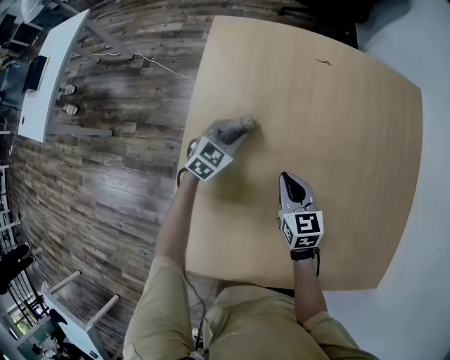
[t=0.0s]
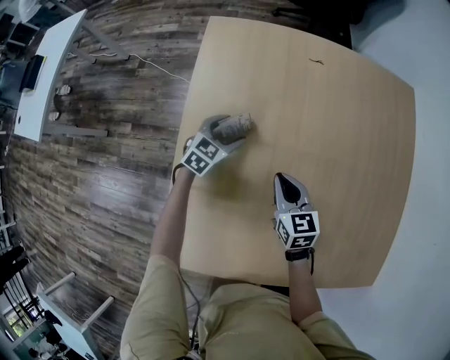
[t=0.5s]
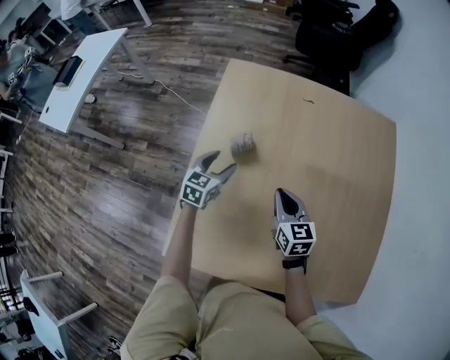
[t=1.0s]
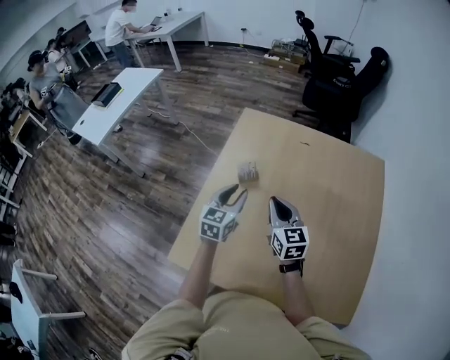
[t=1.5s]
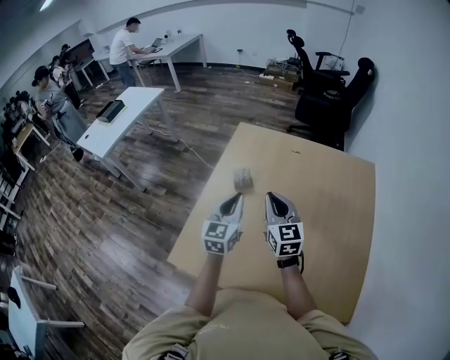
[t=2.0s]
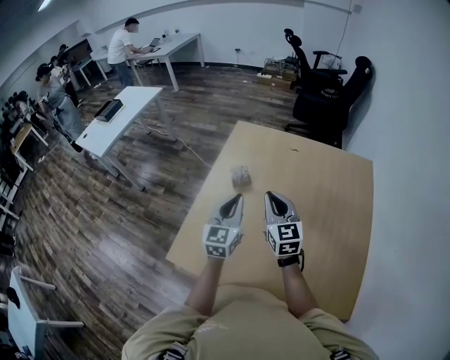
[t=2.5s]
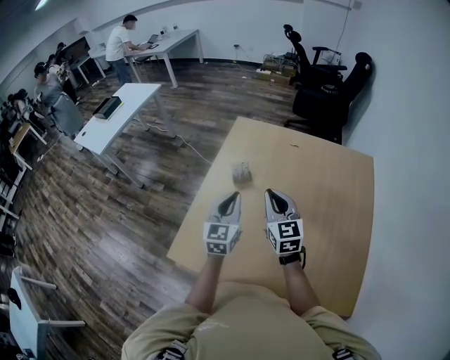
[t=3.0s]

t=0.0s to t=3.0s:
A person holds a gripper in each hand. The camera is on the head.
t=0.0s to t=1.5s: The right gripper travels upward by some 25 cm, and turns by approximately 20 degrees, while the left gripper is displaced upward and backward by roughly 35 cm, changes its angle by about 40 degrees, and opens, then closes once more.
t=1.5s to t=3.0s: The right gripper goes approximately 5 cm upward; the left gripper shifts some 10 cm backward and upward, and closes up.

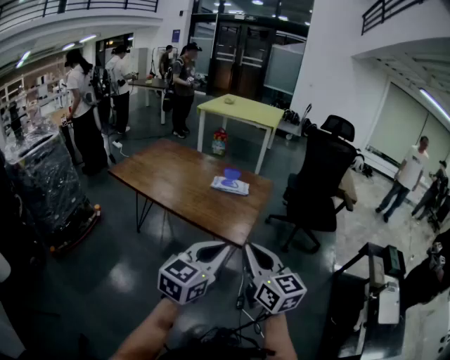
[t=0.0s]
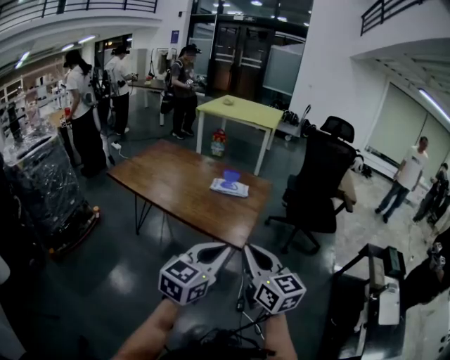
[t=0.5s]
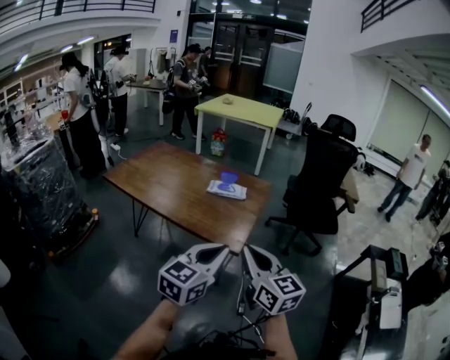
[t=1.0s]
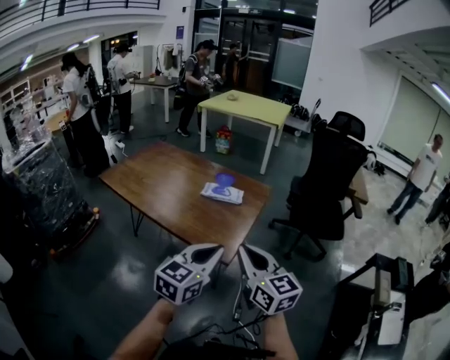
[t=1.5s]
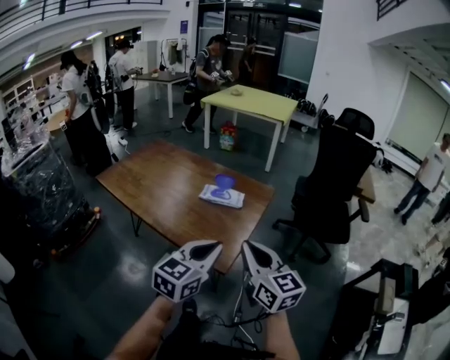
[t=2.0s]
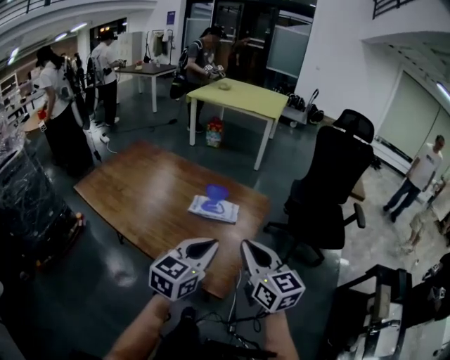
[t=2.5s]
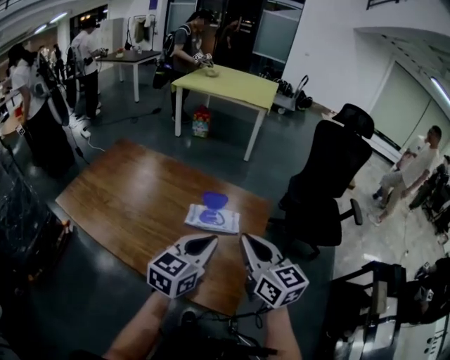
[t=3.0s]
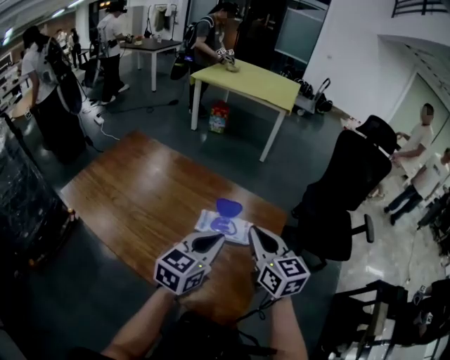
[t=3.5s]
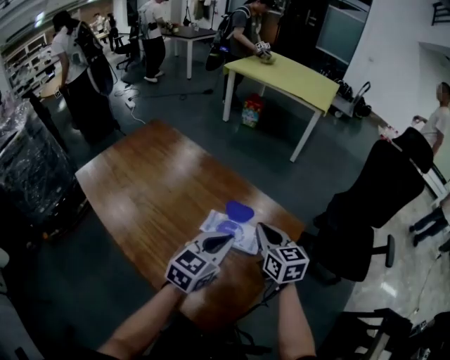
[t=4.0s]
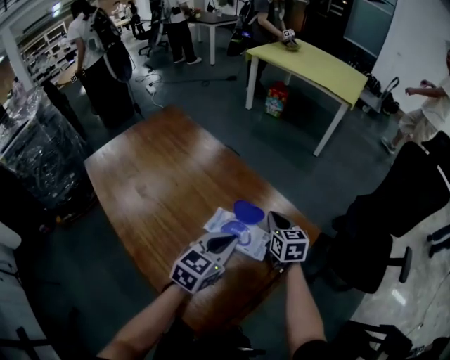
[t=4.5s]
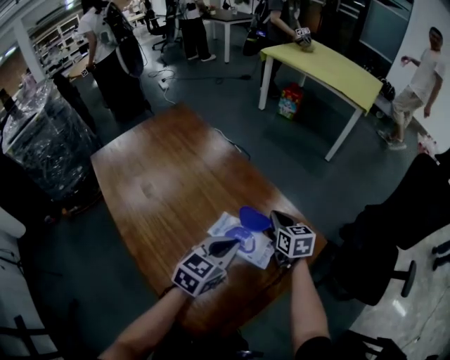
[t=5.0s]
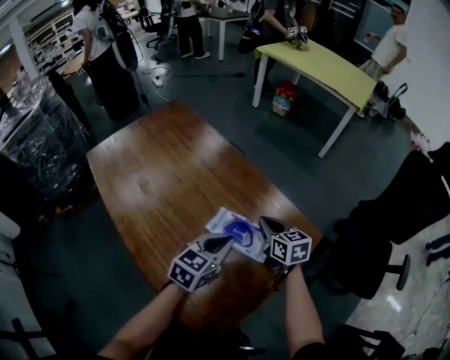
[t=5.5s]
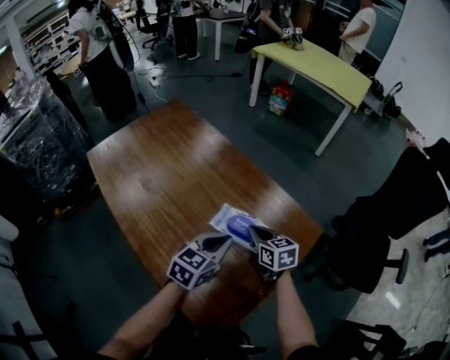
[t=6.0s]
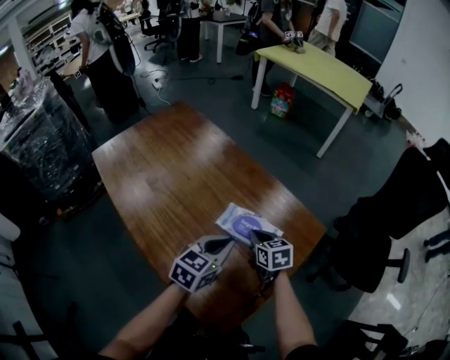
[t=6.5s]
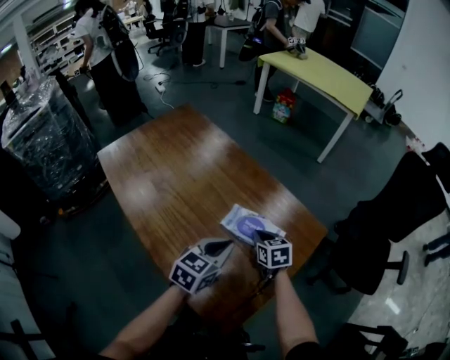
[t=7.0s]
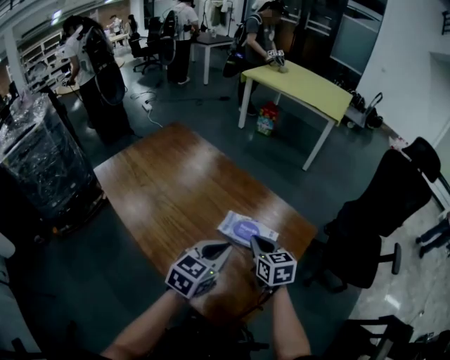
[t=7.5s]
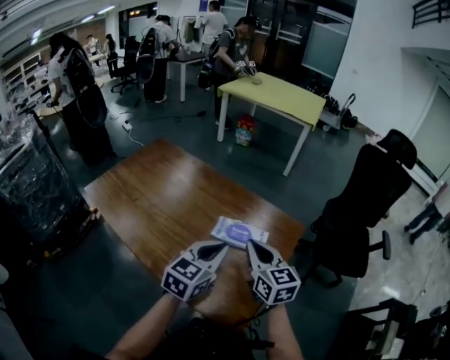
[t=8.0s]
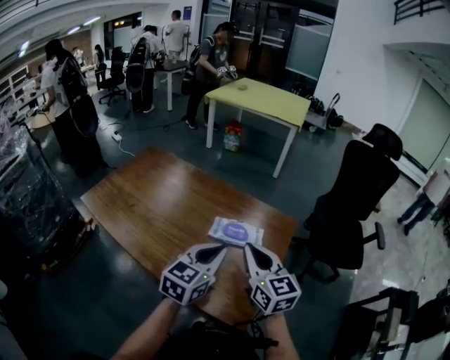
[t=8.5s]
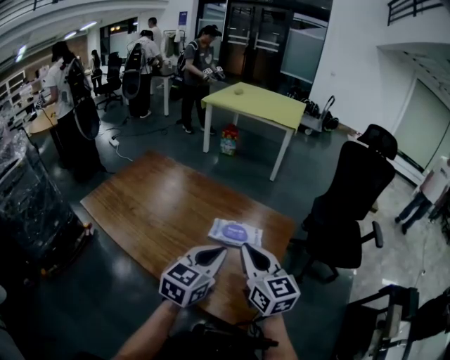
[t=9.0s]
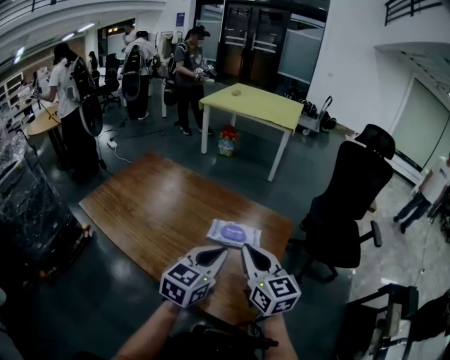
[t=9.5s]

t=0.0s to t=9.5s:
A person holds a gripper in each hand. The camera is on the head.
t=0.0s to t=2.0s: Both grippers move forward, some 15 cm.
t=2.0s to t=4.0s: The grippers both shift forward by approximately 35 cm.
t=4.0s to t=5.5s: The left gripper heads downward, covering some 5 cm; the right gripper travels downward and forward by roughly 15 cm.
t=5.5s to t=7.5s: The left gripper moves upward and backward, approximately 10 cm, while the right gripper heads backward and to the left, covering roughly 10 cm.
t=7.5s to t=9.5s: The right gripper travels upward and backward by approximately 20 cm, and swivels approximately 30 degrees, while the left gripper shifts about 10 cm upward and backward.

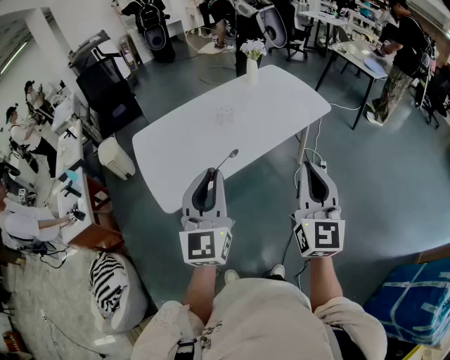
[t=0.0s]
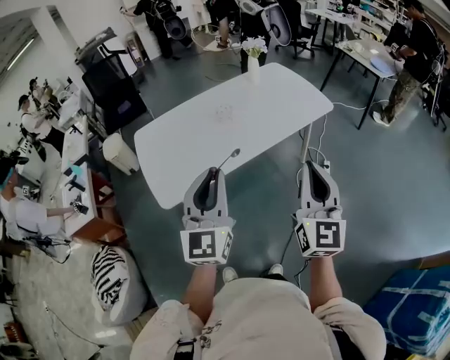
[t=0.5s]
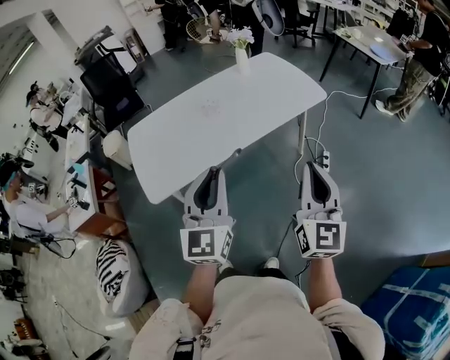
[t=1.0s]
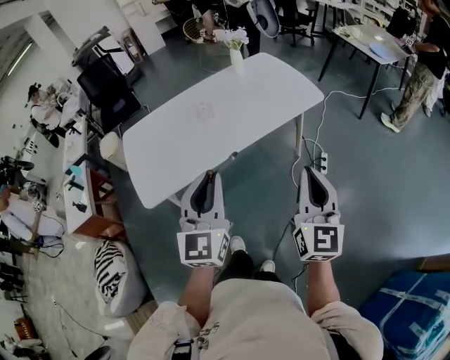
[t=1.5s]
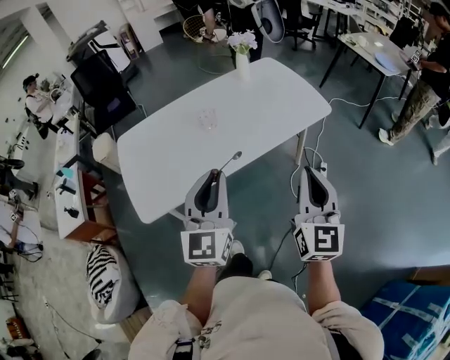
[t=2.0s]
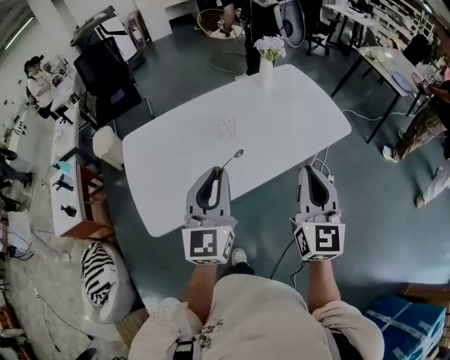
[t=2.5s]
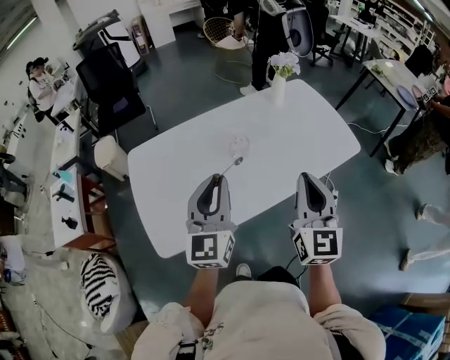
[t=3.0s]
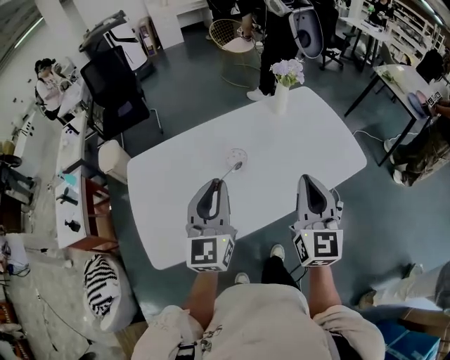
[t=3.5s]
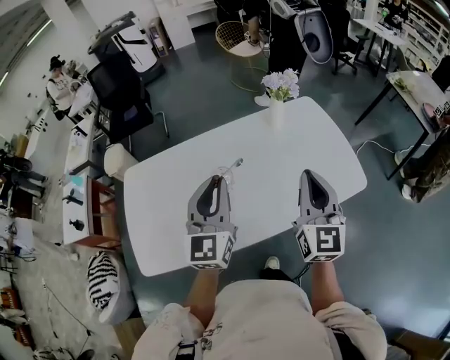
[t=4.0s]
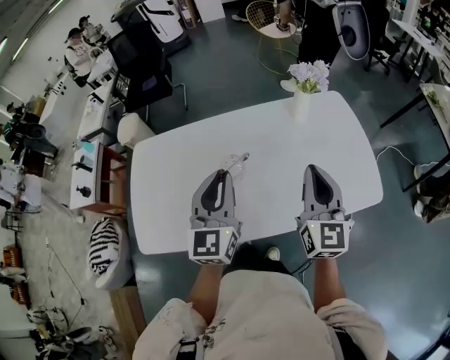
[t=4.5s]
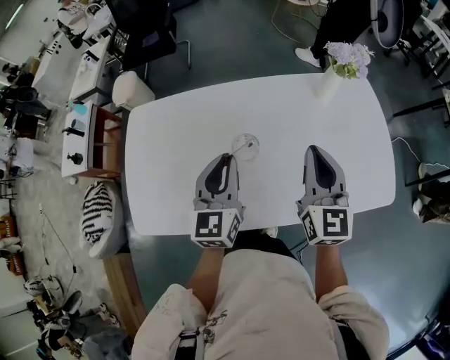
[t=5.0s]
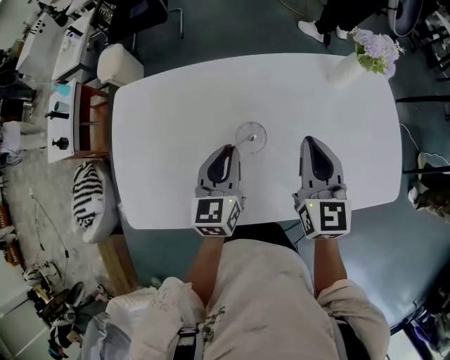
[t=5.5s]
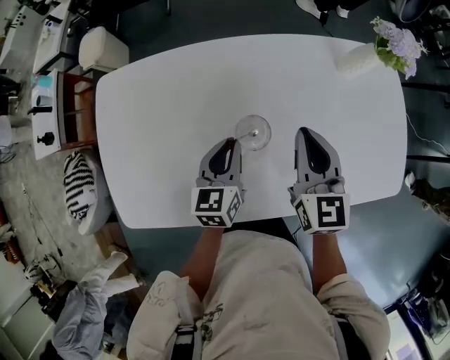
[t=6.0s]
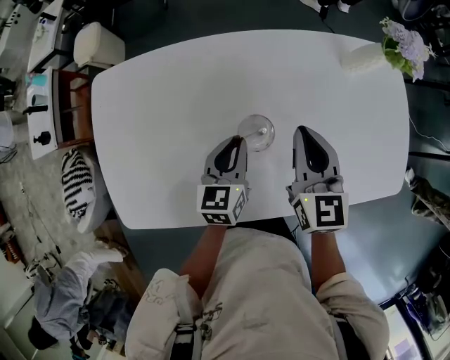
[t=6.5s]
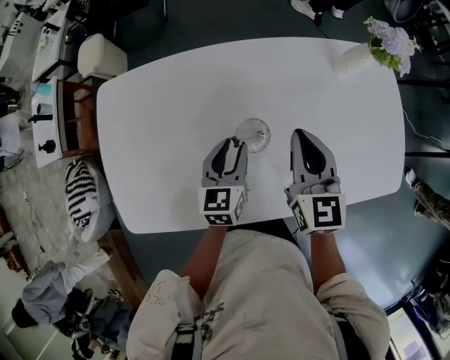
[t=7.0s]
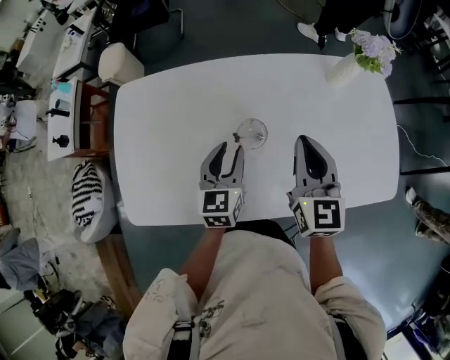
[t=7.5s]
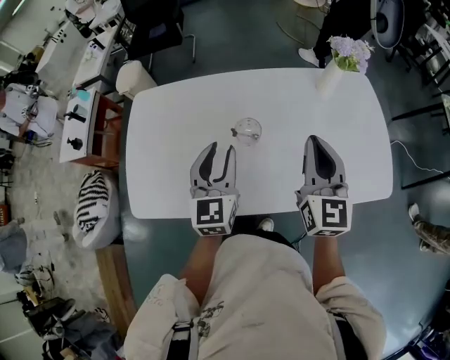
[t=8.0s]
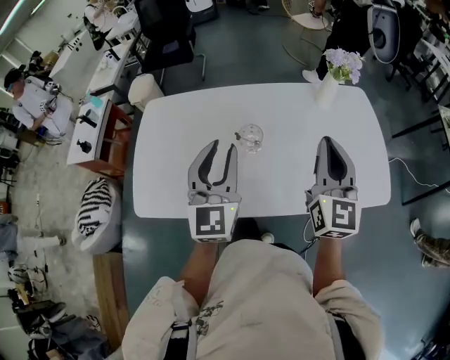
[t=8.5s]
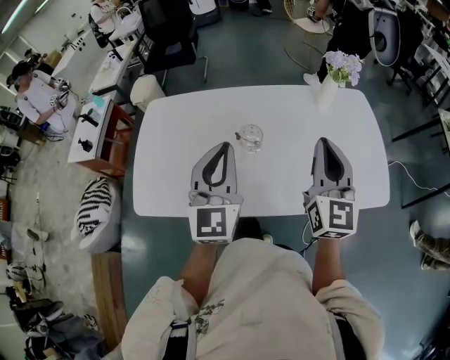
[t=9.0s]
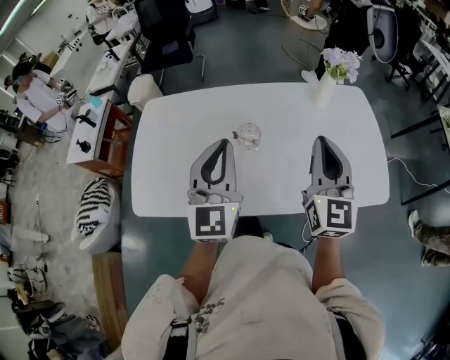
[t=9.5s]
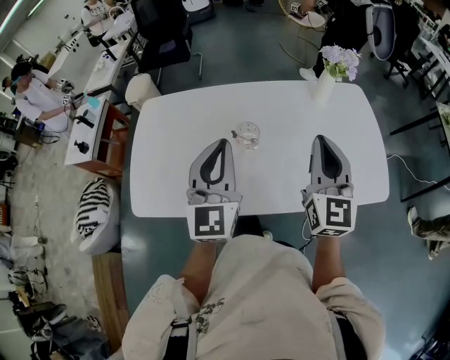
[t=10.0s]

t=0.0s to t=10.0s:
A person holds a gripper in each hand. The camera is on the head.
t=0.0s to t=2.0s: The left gripper moves to the right and forward, roughly 20 cm. Meanwhile the right gripper is displaced to the right, forward and downward by roughly 20 cm.
t=2.0s to t=4.0s: The grippers both shift forward by approximately 35 cm.
t=4.0s to t=6.0s: The right gripper goes about 35 cm forward, downward and to the left, and changes its angle by approximately 30 degrees. The left gripper goes approximately 35 cm downward and forward, and points its fingers about 30 degrees further downward.
t=6.0s to t=8.0s: The left gripper shifts approximately 20 cm upward and backward, swivels some 30 degrees, and opens its fingers. Meanwhile the right gripper is displaced upward, backward and to the right by about 20 cm.
t=8.0s to t=10.0s: The right gripper moves some 5 cm. Meanwhile the left gripper travels upward and backward by about 10 cm, and closes.

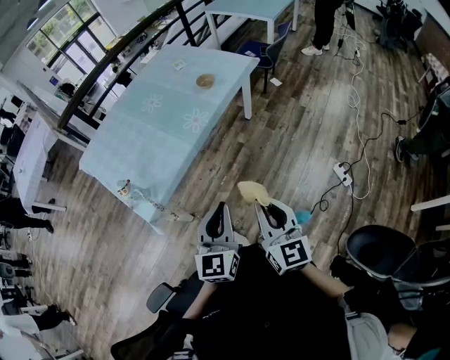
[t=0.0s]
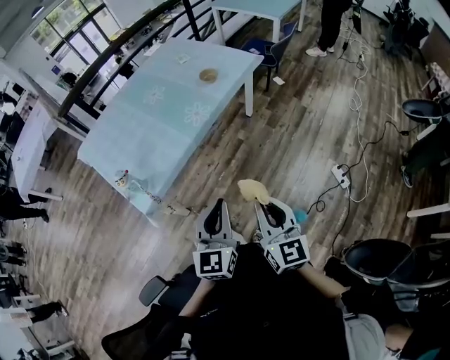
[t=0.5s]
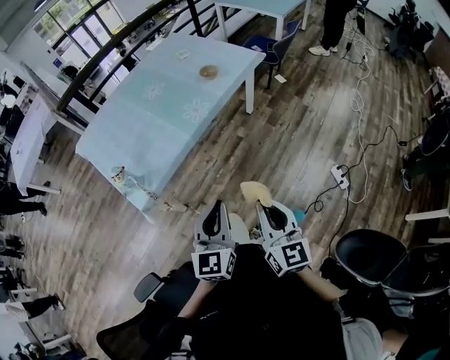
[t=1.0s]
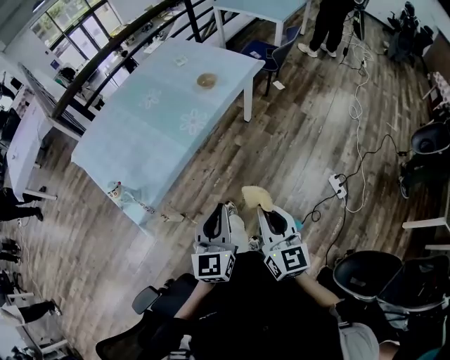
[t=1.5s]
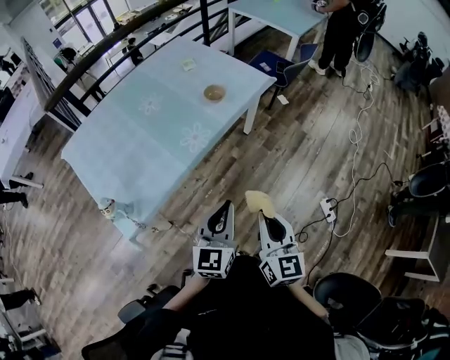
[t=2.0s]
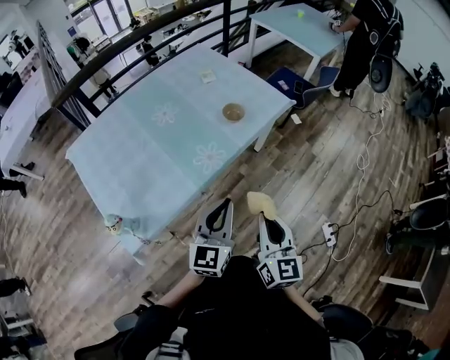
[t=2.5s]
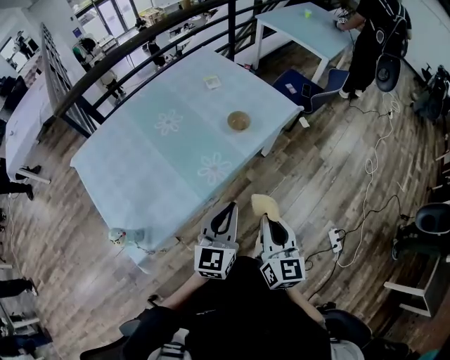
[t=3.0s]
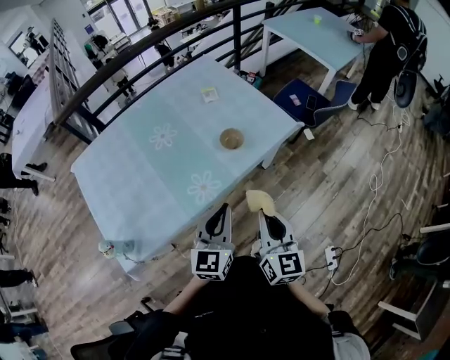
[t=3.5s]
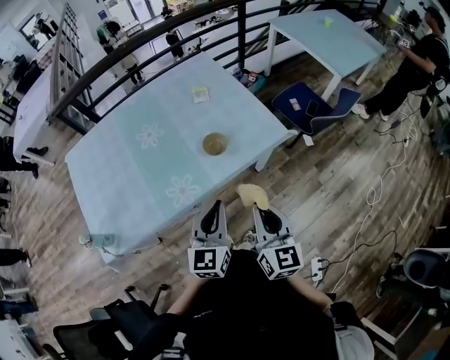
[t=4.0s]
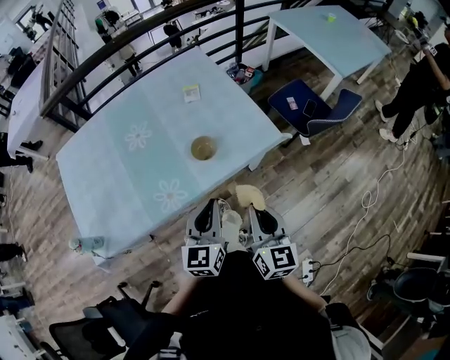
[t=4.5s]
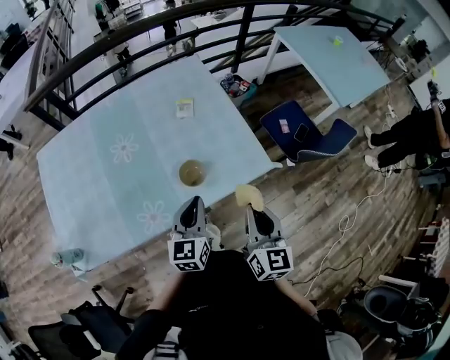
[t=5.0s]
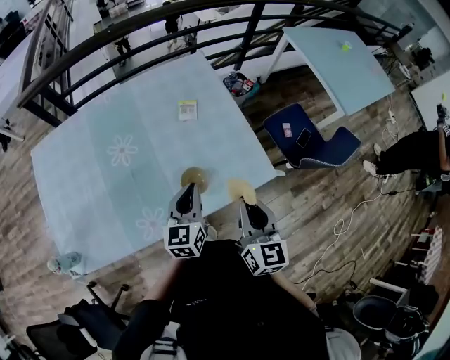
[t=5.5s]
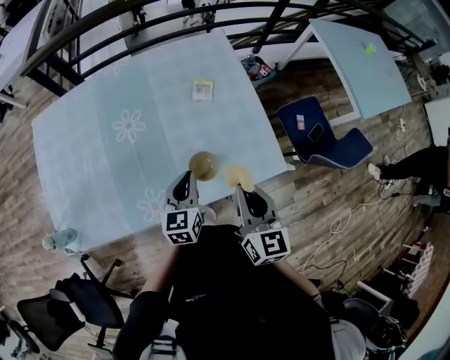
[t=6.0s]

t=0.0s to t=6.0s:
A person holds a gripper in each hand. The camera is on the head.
t=0.0s to t=2.0s: Both grippers travel together forward, about 15 cm.
t=2.0s to t=4.0s: Both grippers move forward, about 35 cm. The left gripper turns by roughly 20 degrees.
t=4.0s to t=6.0s: The left gripper shifts some 30 cm forward and downward, and rotates approximately 20 degrees. The right gripper shifts roughly 25 cm forward.
